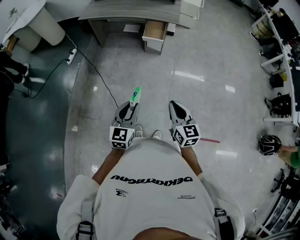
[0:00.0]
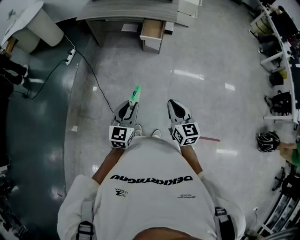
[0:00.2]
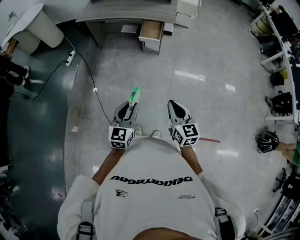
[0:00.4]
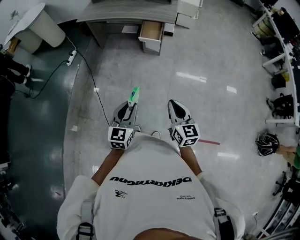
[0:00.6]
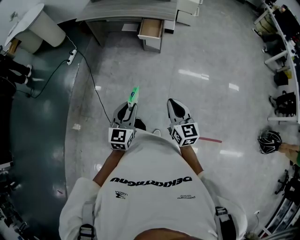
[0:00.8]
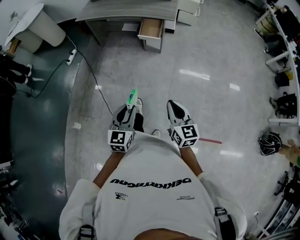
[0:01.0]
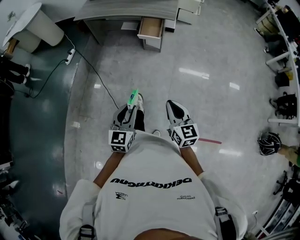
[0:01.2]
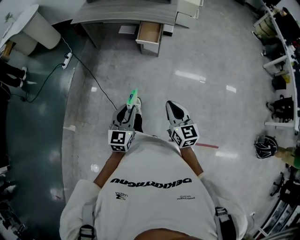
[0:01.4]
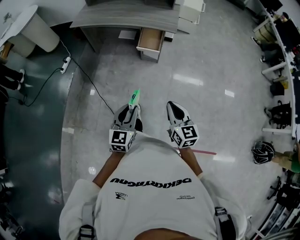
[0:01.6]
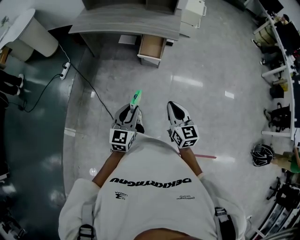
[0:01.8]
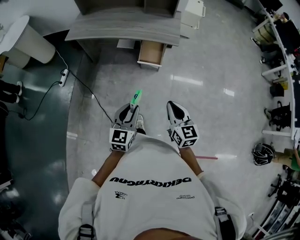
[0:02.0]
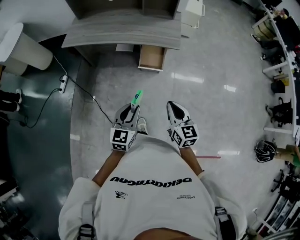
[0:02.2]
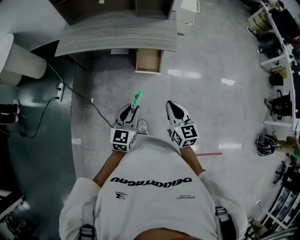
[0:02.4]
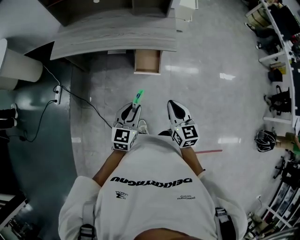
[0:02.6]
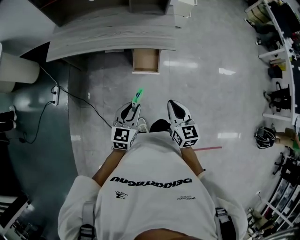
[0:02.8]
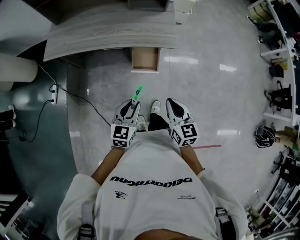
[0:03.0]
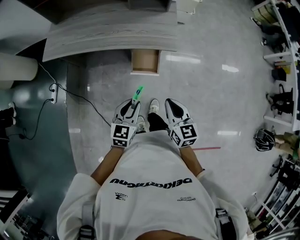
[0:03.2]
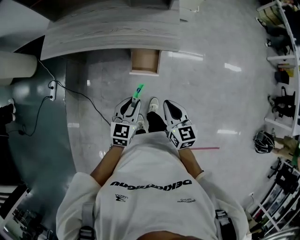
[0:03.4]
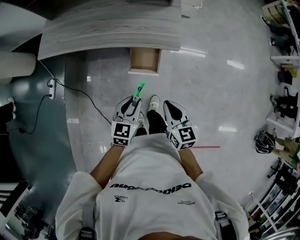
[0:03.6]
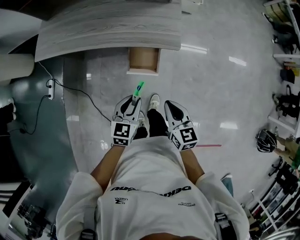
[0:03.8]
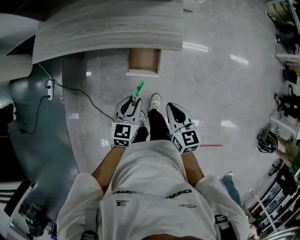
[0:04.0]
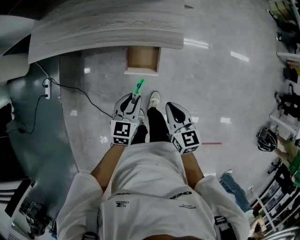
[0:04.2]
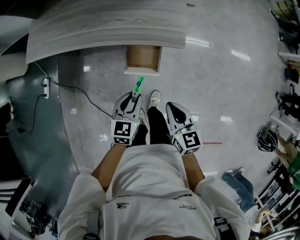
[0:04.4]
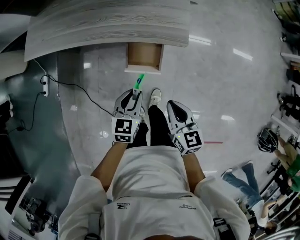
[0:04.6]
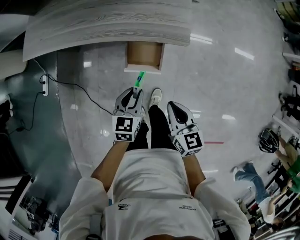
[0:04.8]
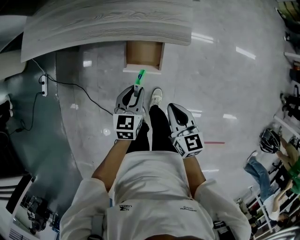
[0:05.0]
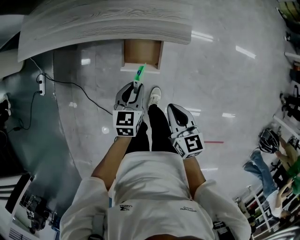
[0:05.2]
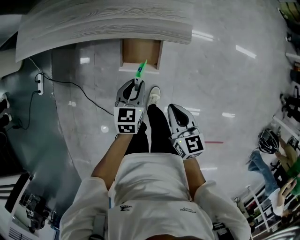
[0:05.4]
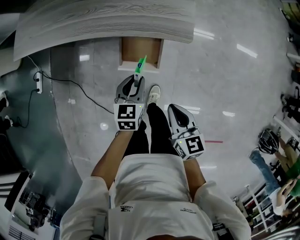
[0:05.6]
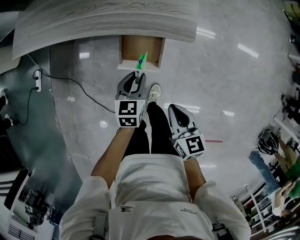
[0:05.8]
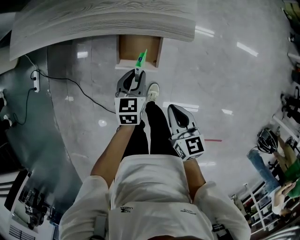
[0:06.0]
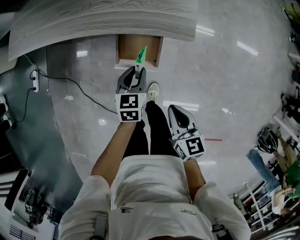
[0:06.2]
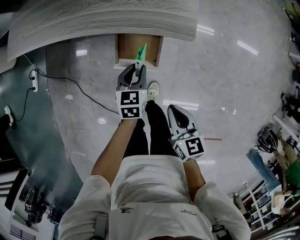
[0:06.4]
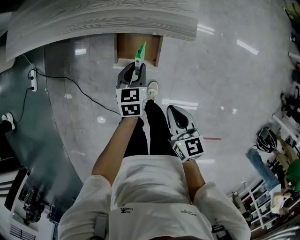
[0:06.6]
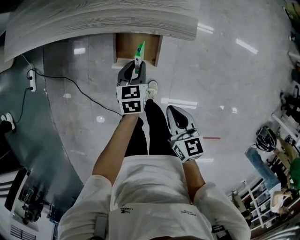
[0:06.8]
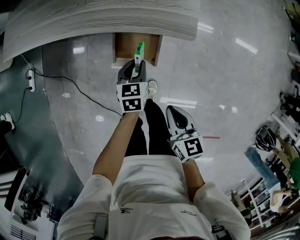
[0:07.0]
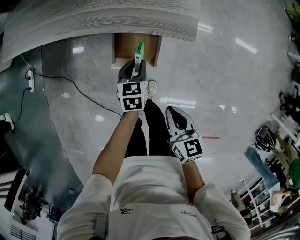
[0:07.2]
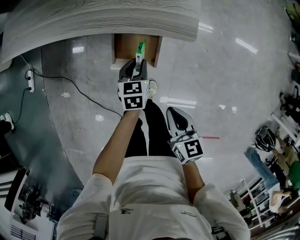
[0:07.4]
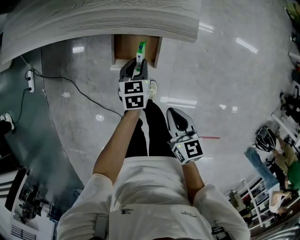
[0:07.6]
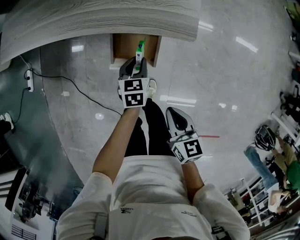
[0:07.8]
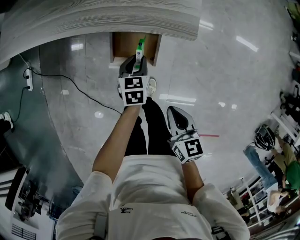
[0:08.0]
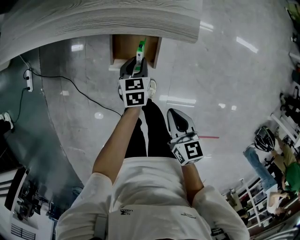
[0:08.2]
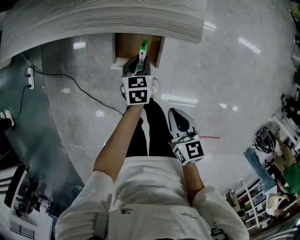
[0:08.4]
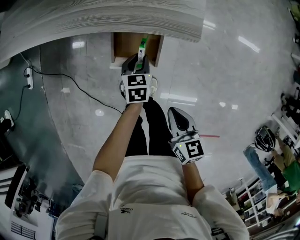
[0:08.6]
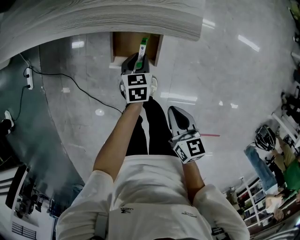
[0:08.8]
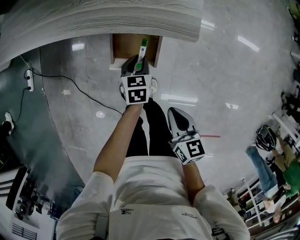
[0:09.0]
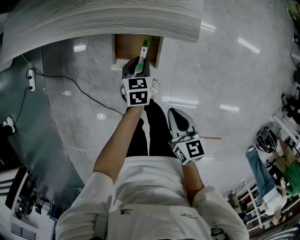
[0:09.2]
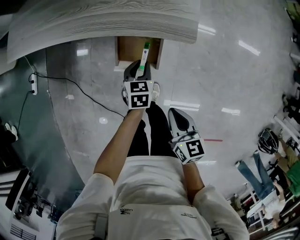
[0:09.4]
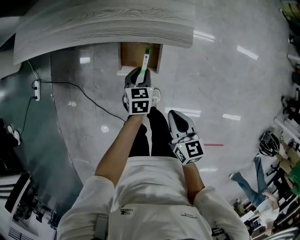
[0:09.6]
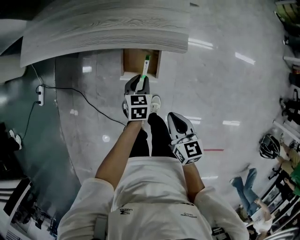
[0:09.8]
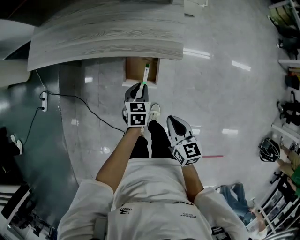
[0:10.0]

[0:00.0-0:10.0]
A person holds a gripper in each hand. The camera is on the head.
0:00.0 to 0:01.4: The two grippers go some 10 cm forward and to the right.
0:01.4 to 0:02.8: The two grippers travel together, forward, approximately 50 cm.
0:02.8 to 0:04.2: Both grippers move forward and downward, approximately 20 cm.
0:04.2 to 0:05.8: The left gripper moves downward and forward, approximately 15 cm, while the right gripper moves downward, approximately 10 cm.
0:05.8 to 0:07.2: The left gripper shifts about 10 cm downward.
0:07.2 to 0:08.6: There are only small adjustments of the grippers.
0:08.6 to 0:10.0: Both grippers travel together upward, roughly 10 cm.

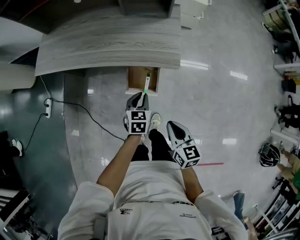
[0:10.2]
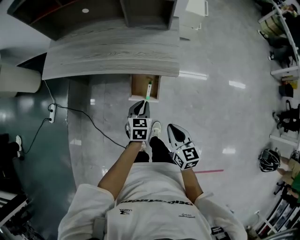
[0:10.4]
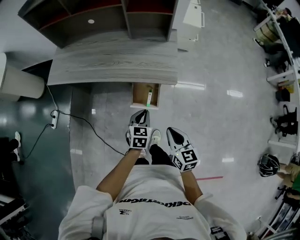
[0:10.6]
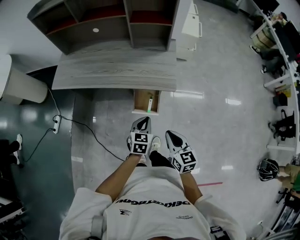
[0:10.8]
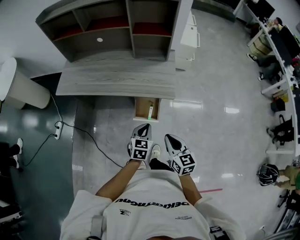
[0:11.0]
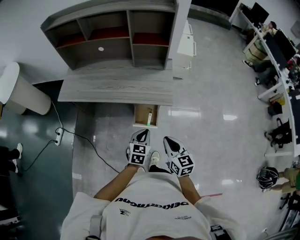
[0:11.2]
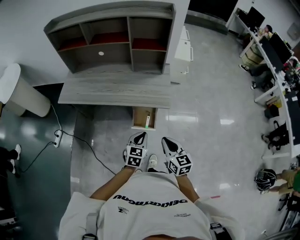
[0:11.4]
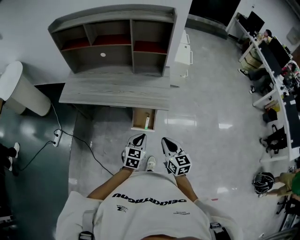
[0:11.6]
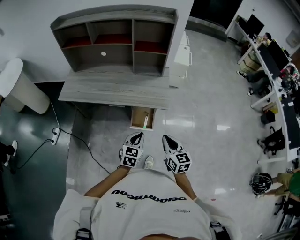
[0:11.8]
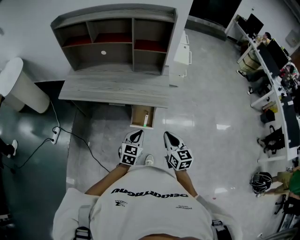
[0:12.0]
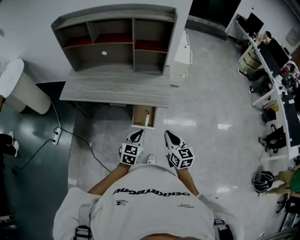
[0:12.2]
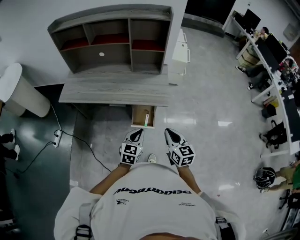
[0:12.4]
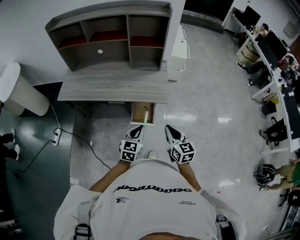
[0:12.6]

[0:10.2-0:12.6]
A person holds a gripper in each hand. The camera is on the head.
0:10.2 to 0:11.4: The left gripper goes about 25 cm upward and backward. Meanwhile the right gripper is displaced upward by roughly 15 cm.
0:11.4 to 0:12.6: The grippers move only a little.

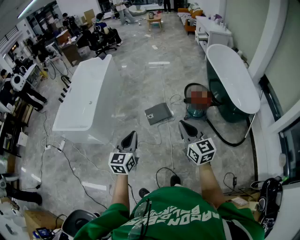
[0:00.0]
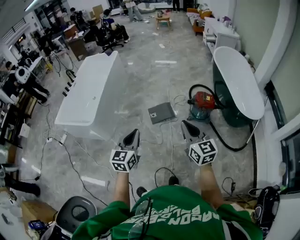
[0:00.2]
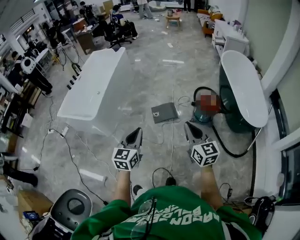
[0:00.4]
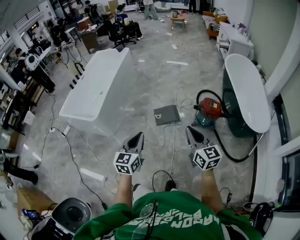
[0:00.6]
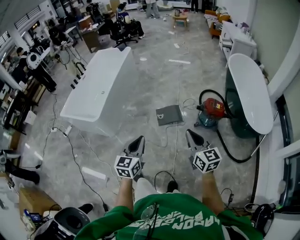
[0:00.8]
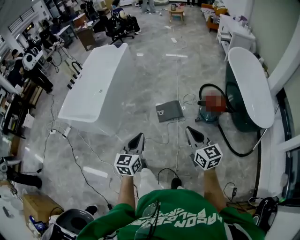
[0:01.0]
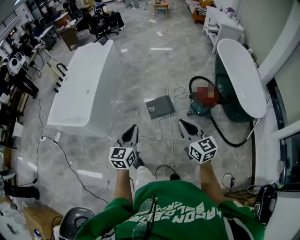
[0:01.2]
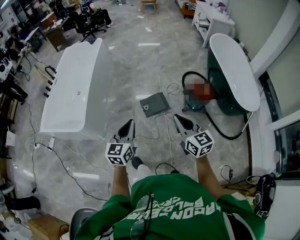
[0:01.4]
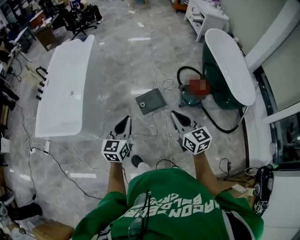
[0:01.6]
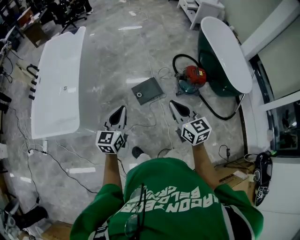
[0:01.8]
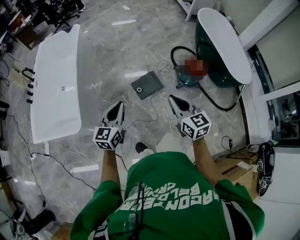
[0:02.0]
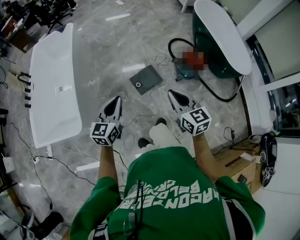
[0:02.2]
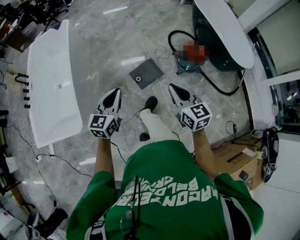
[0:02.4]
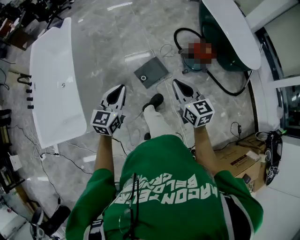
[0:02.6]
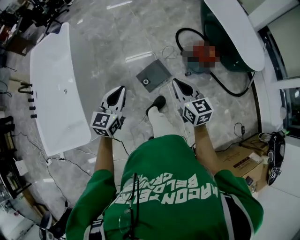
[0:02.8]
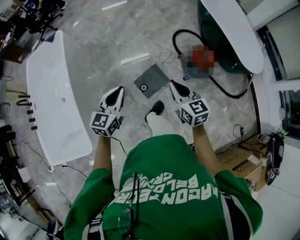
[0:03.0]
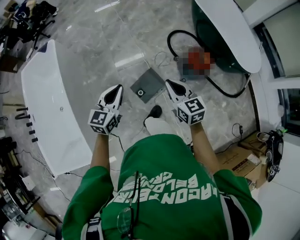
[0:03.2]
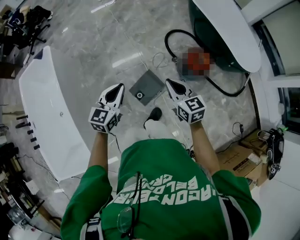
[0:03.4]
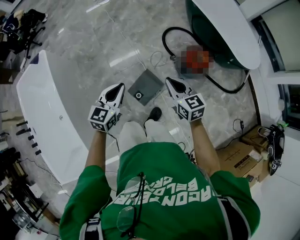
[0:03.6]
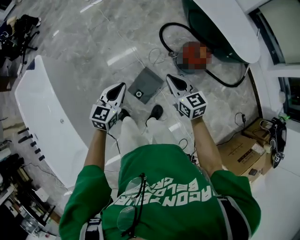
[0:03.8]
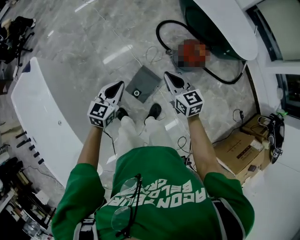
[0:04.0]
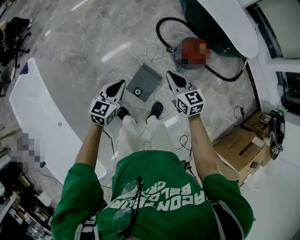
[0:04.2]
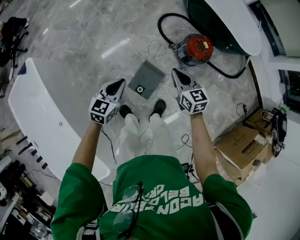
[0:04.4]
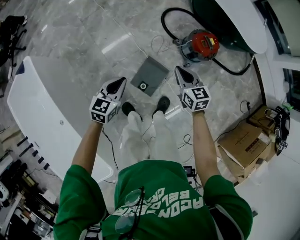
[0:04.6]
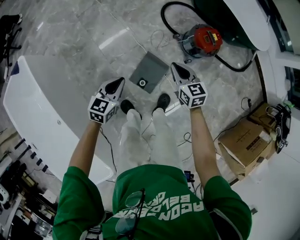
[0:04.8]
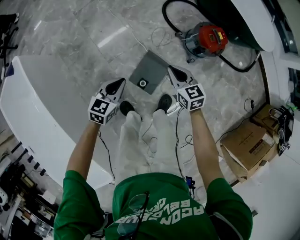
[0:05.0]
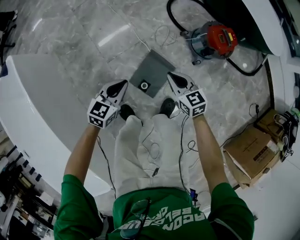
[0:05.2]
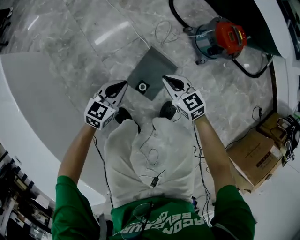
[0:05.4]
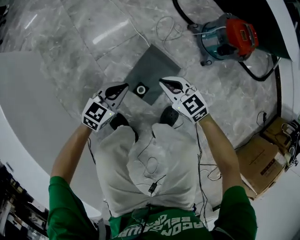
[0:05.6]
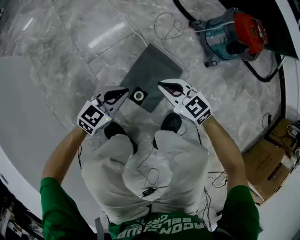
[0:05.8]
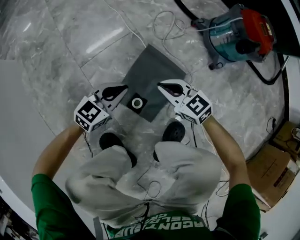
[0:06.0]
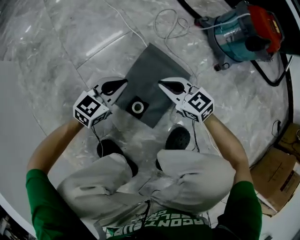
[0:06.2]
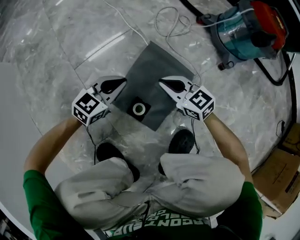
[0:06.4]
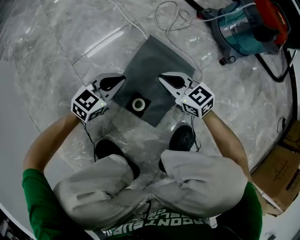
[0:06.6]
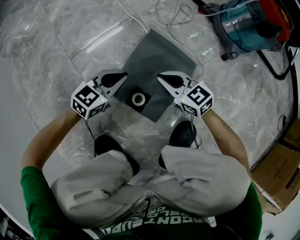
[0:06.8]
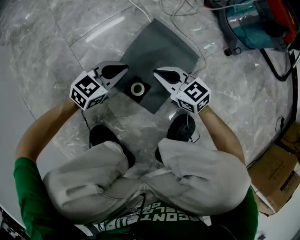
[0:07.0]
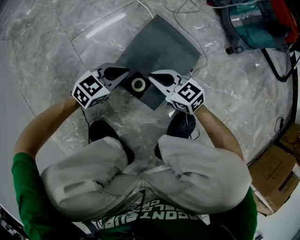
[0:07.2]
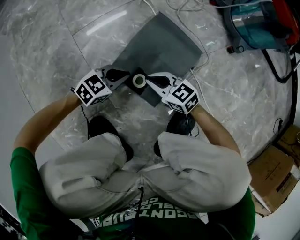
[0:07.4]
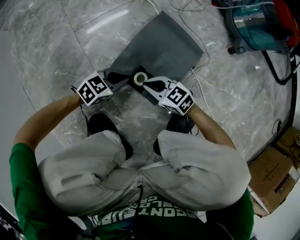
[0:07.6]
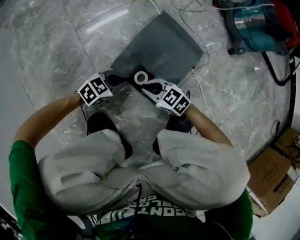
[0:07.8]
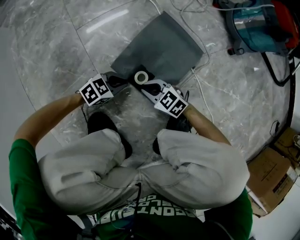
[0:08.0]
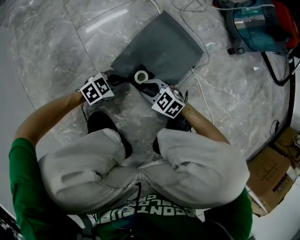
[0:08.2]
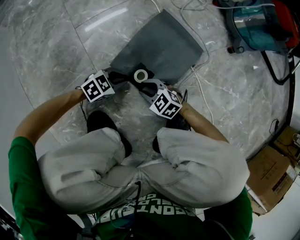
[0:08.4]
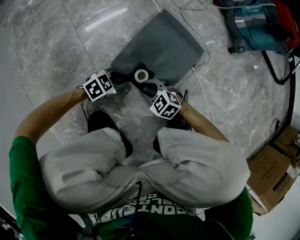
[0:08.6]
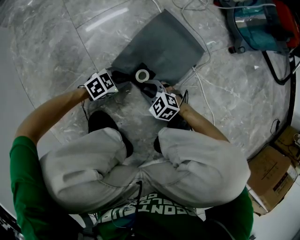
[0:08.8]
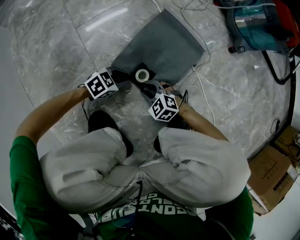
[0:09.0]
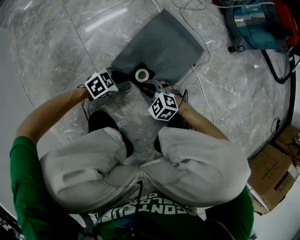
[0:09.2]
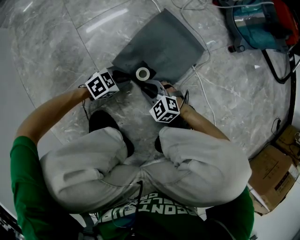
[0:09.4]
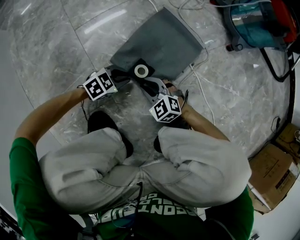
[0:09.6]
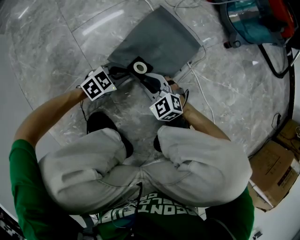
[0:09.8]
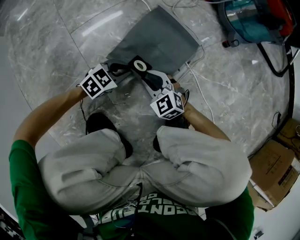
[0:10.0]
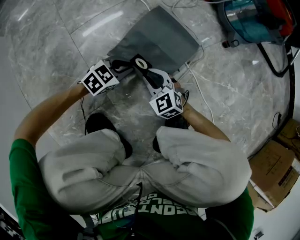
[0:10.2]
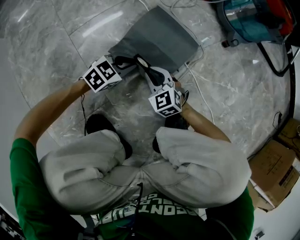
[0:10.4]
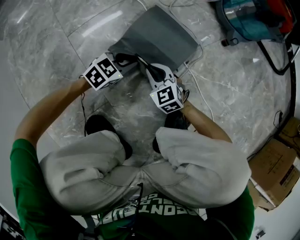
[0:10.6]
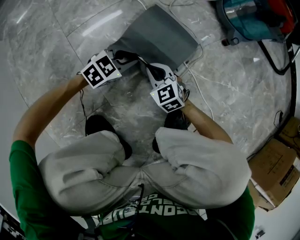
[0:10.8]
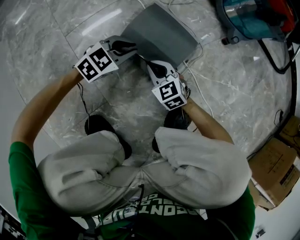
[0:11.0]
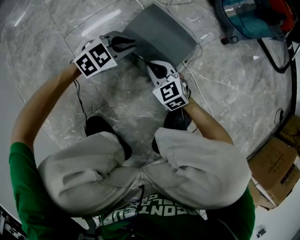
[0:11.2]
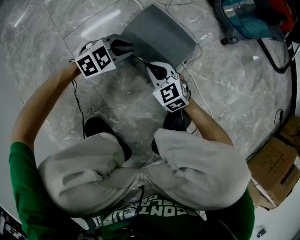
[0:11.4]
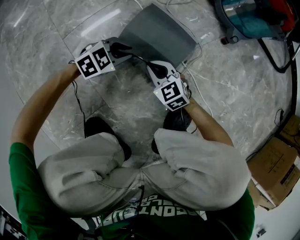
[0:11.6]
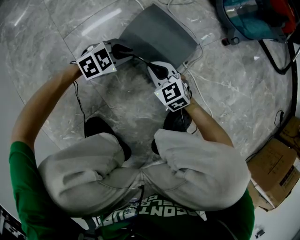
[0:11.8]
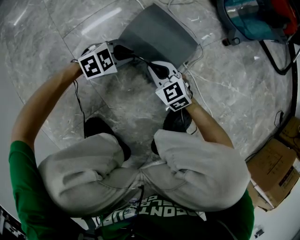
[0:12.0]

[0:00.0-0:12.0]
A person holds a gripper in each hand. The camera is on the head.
0:00.0 to 0:01.6: The two grippers go some 25 cm forward and to the left.
0:01.6 to 0:03.0: Both grippers travel together forward, about 35 cm. The left gripper turns by approximately 20 degrees.
0:03.0 to 0:04.4: The grippers both shift forward and downward by roughly 25 cm. The left gripper changes its angle by some 30 degrees.
0:04.4 to 0:06.0: The grippers both shift downward by approximately 60 cm. The left gripper turns by some 20 degrees. The right gripper turns by approximately 30 degrees.
0:06.0 to 0:07.6: The grippers both shift downward by some 20 cm.
0:07.6 to 0:09.0: The right gripper moves downward, about 5 cm, swivels approximately 30 degrees, and opens, while the left gripper shifts by approximately 5 cm.
0:09.0 to 0:10.4: The right gripper moves about 10 cm, and rotates some 30 degrees; the left gripper moves roughly 10 cm.
